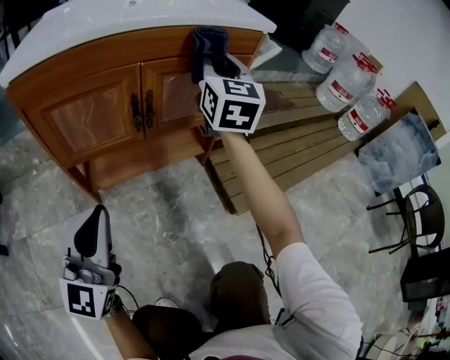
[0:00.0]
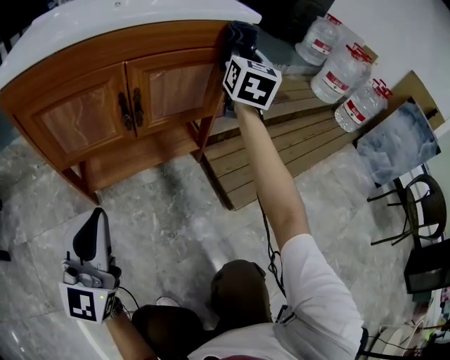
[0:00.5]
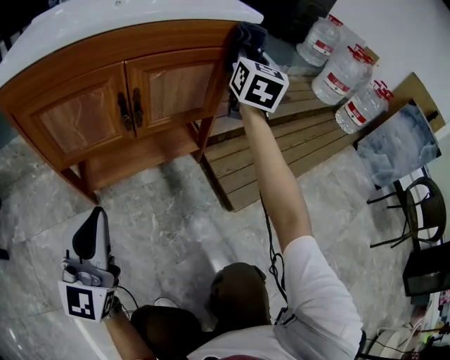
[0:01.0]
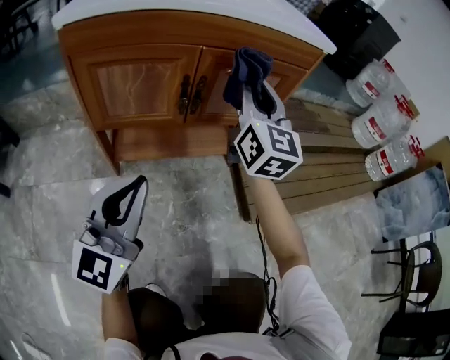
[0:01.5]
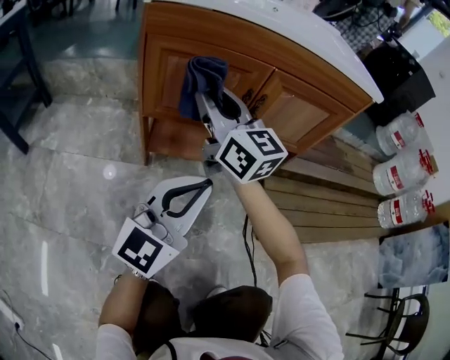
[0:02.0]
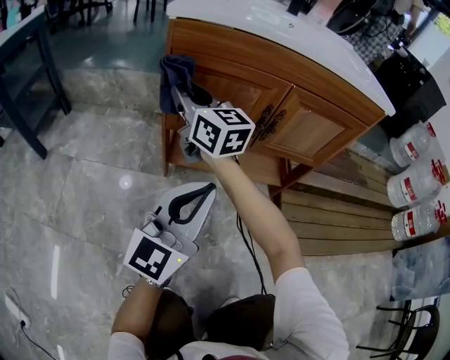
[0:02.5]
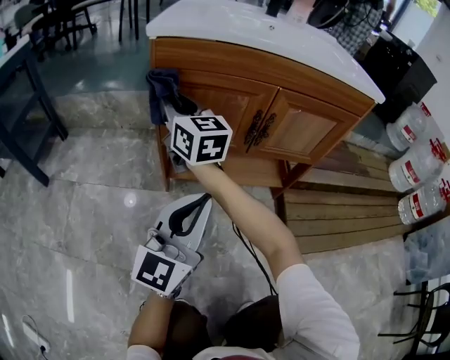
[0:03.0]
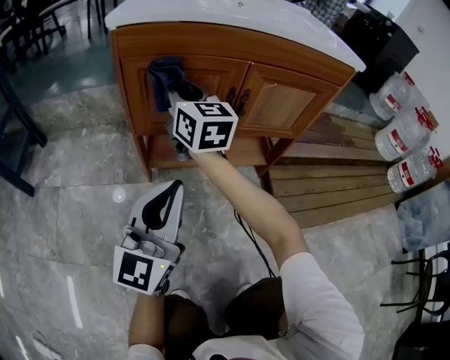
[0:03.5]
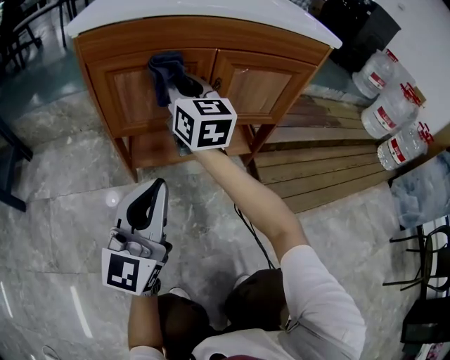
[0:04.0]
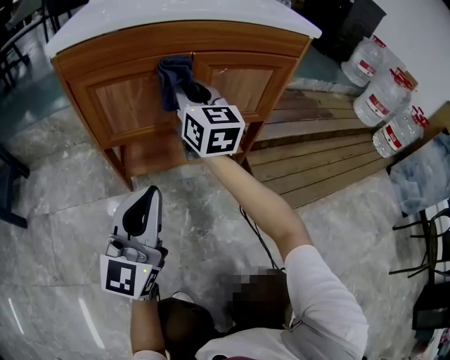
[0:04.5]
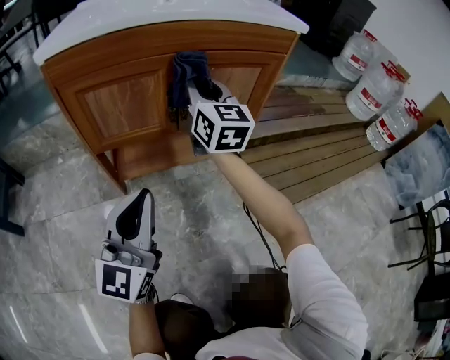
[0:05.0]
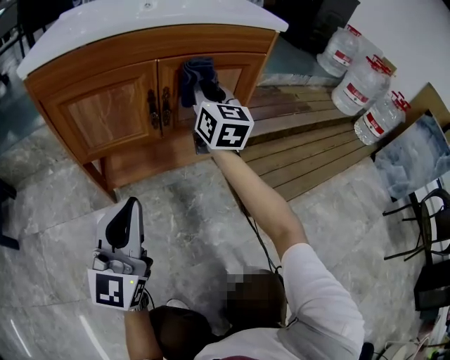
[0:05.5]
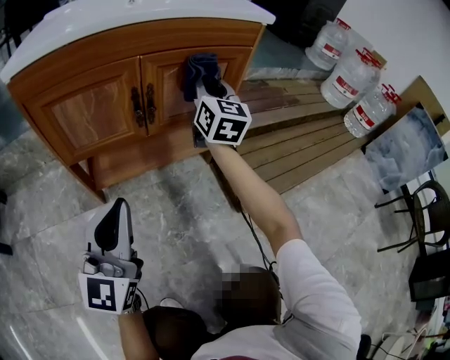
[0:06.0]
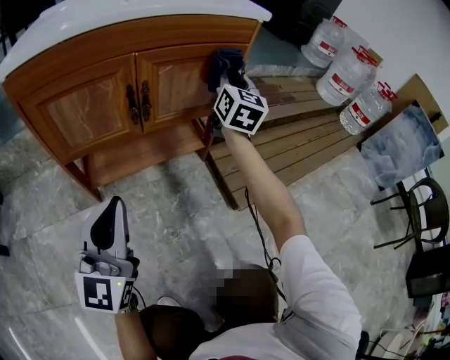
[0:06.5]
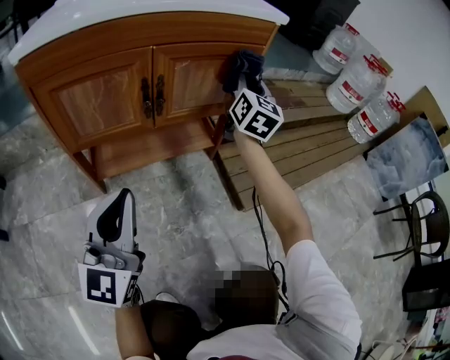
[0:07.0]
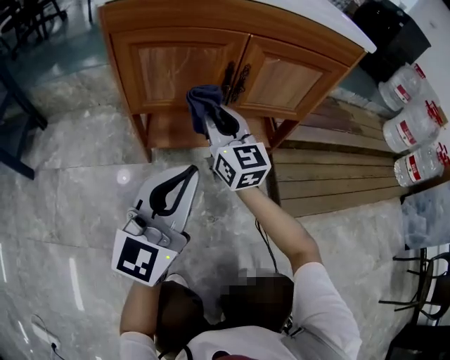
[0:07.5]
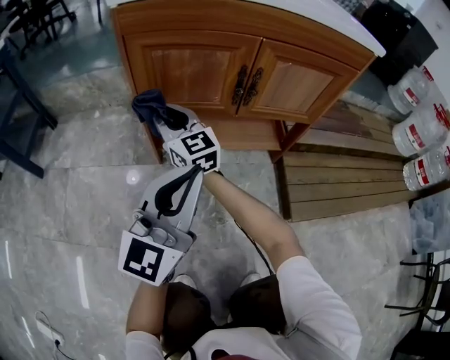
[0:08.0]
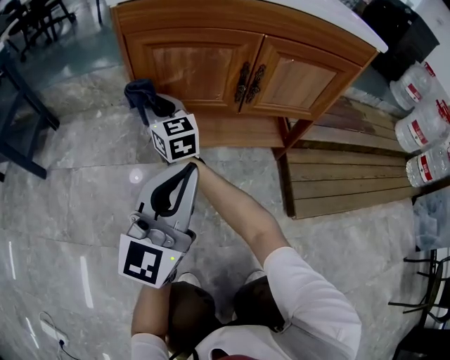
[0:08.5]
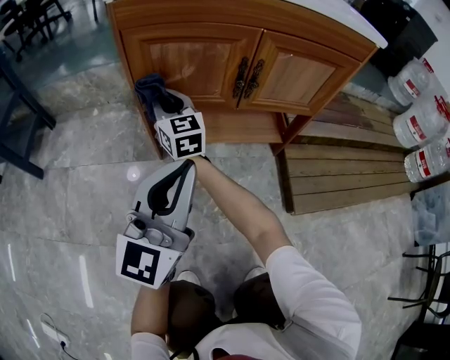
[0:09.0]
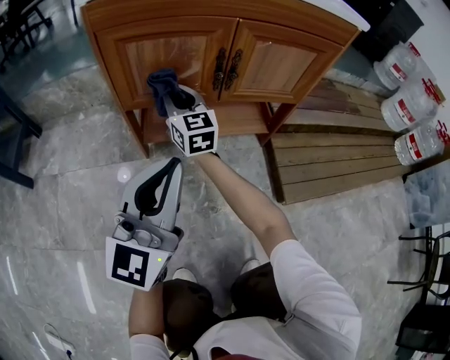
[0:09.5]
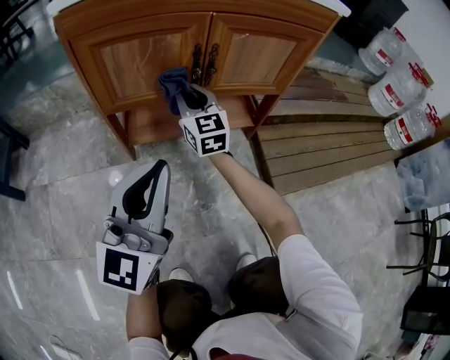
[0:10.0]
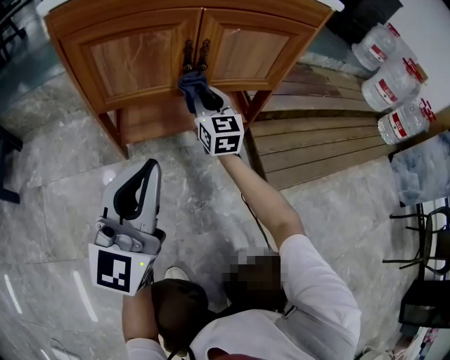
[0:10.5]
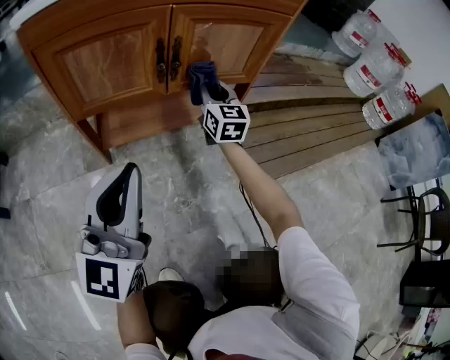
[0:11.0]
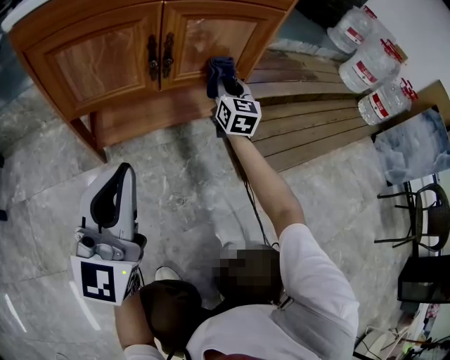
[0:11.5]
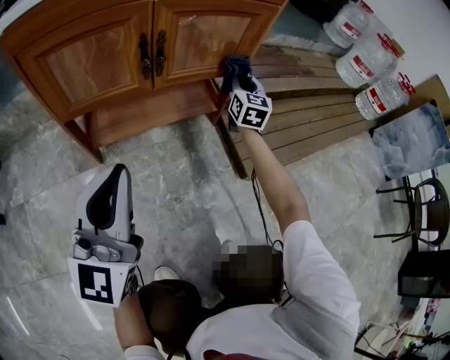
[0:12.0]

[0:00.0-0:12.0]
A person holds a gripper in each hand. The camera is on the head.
0:00.0 to 0:02.0: The right gripper shifts by approximately 30 cm, and rotates some 50 degrees; the left gripper ends up some 5 cm from where it was.
0:02.0 to 0:04.0: The right gripper is displaced forward by about 5 cm, goes to the left and returns, approximately 10 cm each way, and rotates approximately 20 degrees.
0:04.0 to 0:06.0: The right gripper is displaced to the right by roughly 25 cm, and swivels some 30 degrees.
0:06.0 to 0:08.0: The right gripper changes place by some 40 cm, and rotates approximately 50 degrees.
0:08.0 to 0:10.0: The right gripper moves to the right, some 15 cm, and changes its angle by some 20 degrees.
0:10.0 to 0:12.0: The right gripper goes approximately 30 cm to the right, and turns by some 30 degrees.

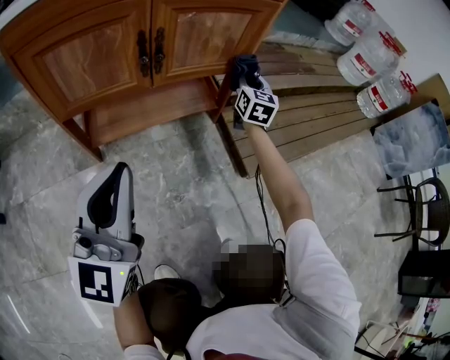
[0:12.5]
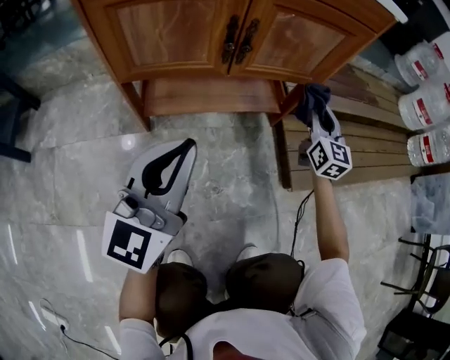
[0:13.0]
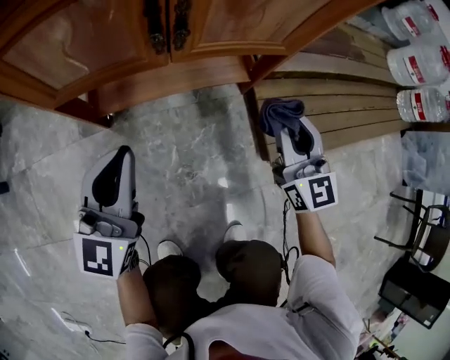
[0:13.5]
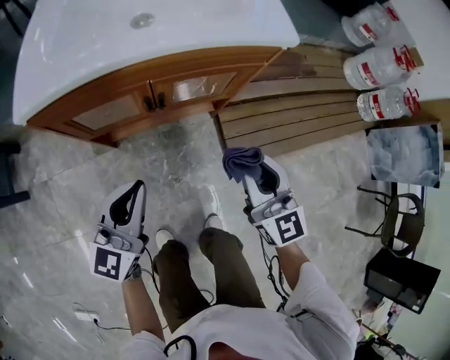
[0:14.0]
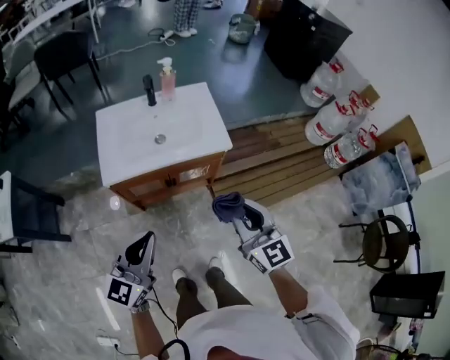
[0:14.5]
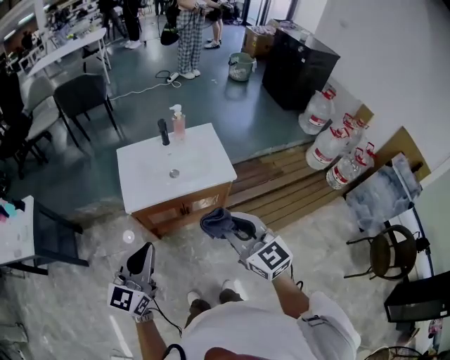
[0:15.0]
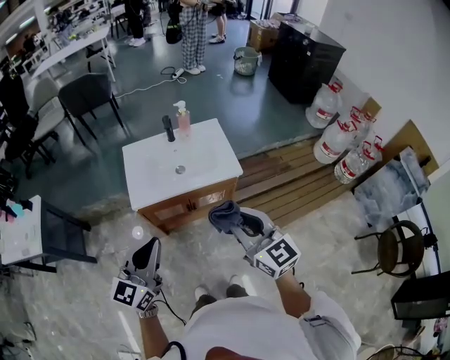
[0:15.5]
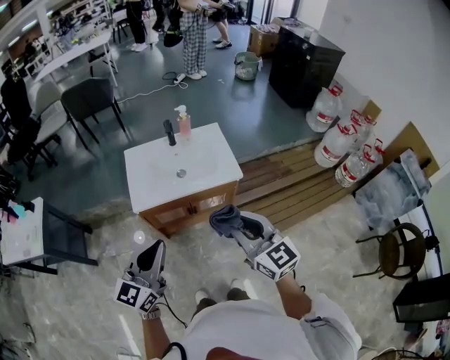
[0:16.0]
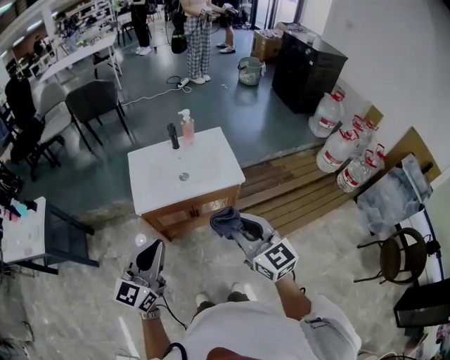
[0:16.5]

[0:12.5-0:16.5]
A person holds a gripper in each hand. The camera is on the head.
0:12.5 to 0:14.5: The left gripper goes some 50 cm upward. The right gripper moves upward and backward, roughly 80 cm, and rotates roughly 30 degrees.
0:14.5 to 0:16.5: The two grippers go approximately 10 cm upward.

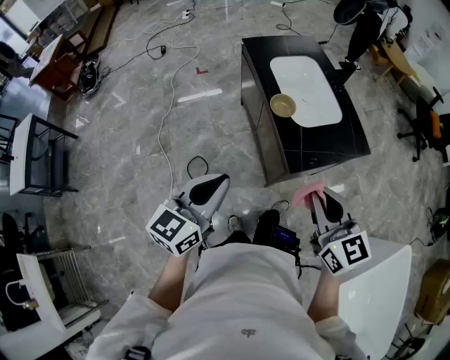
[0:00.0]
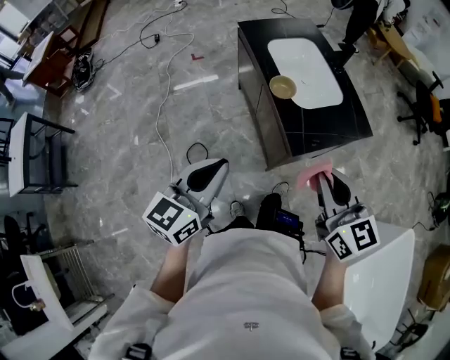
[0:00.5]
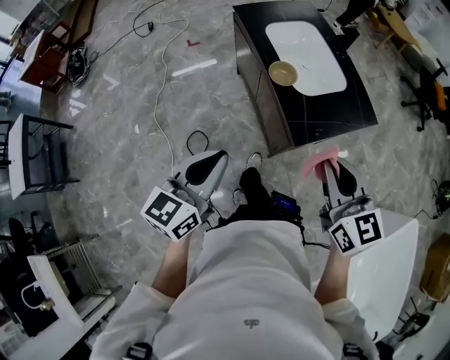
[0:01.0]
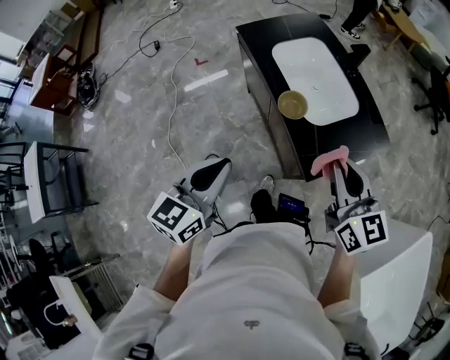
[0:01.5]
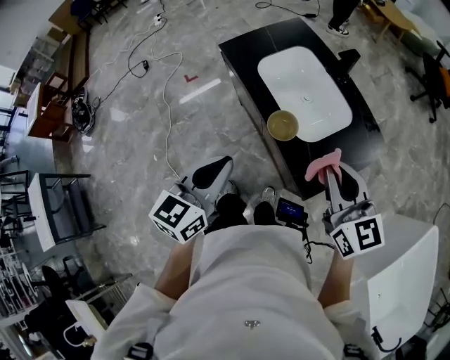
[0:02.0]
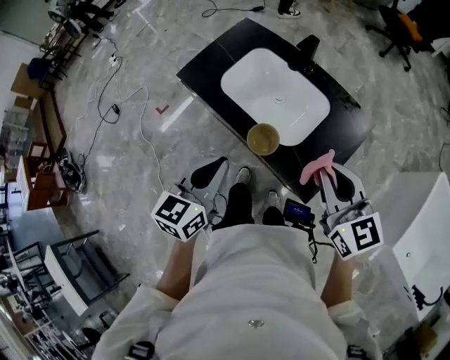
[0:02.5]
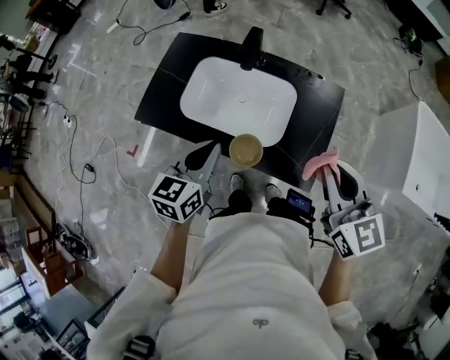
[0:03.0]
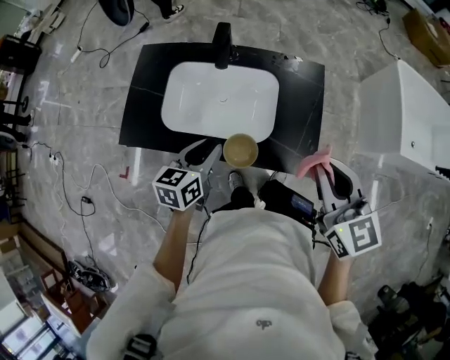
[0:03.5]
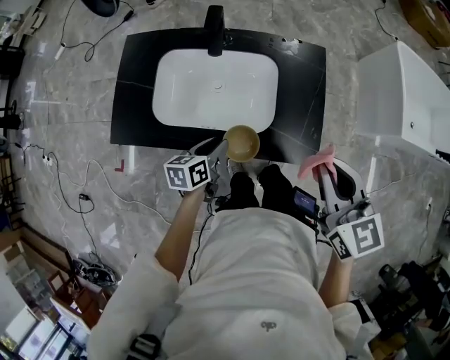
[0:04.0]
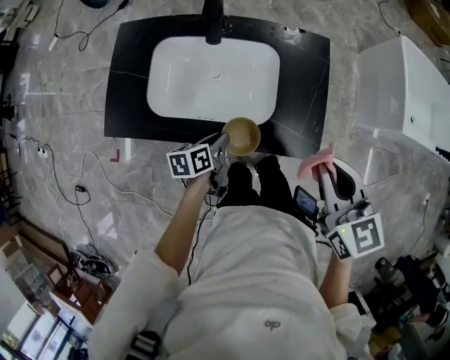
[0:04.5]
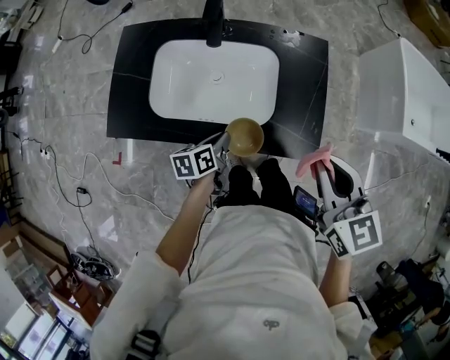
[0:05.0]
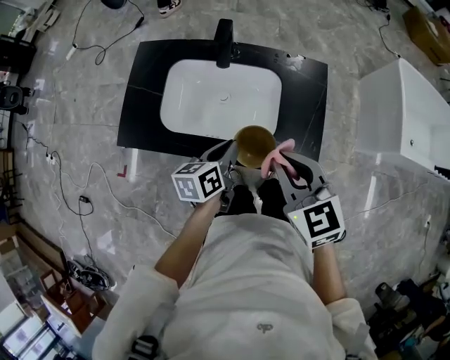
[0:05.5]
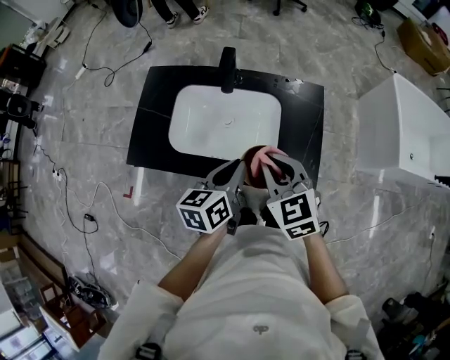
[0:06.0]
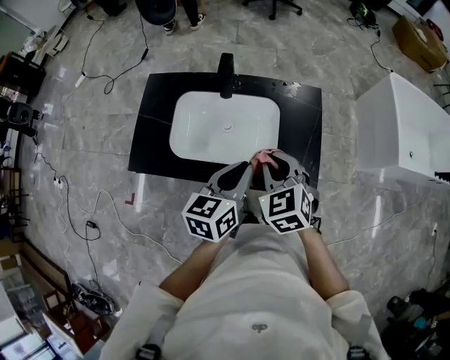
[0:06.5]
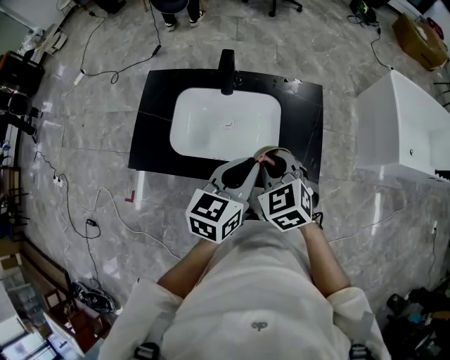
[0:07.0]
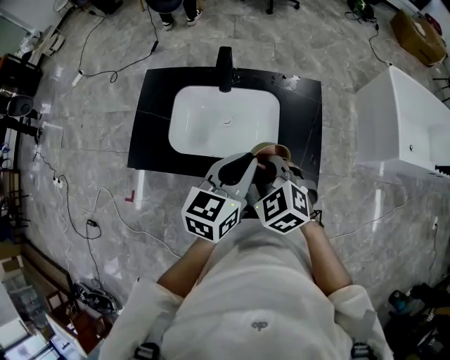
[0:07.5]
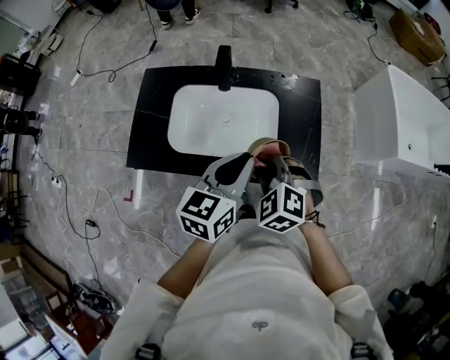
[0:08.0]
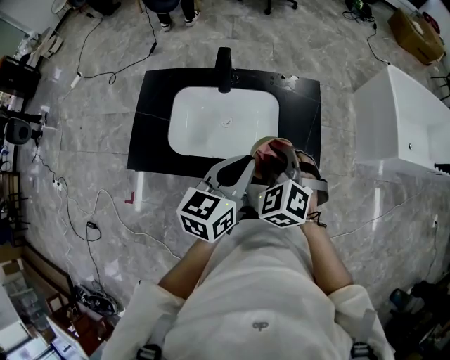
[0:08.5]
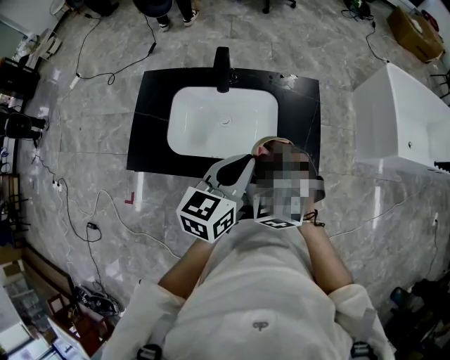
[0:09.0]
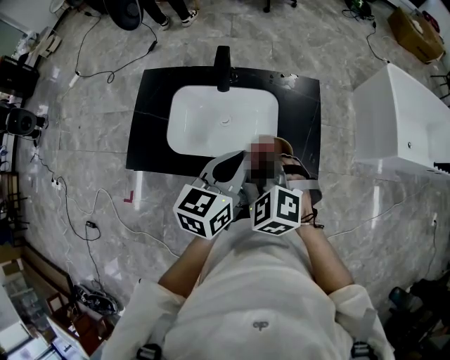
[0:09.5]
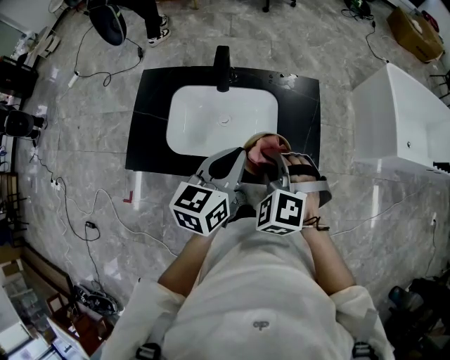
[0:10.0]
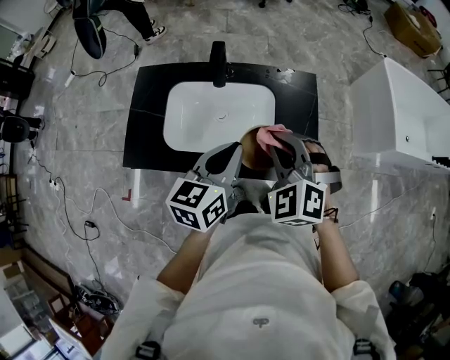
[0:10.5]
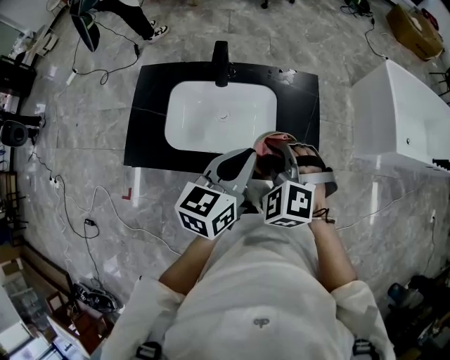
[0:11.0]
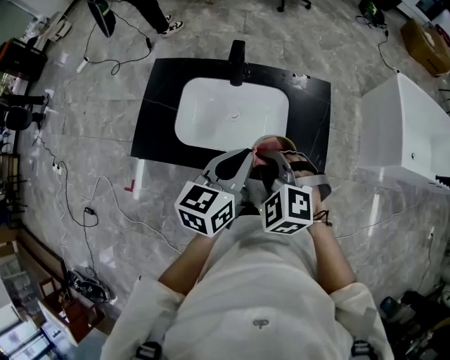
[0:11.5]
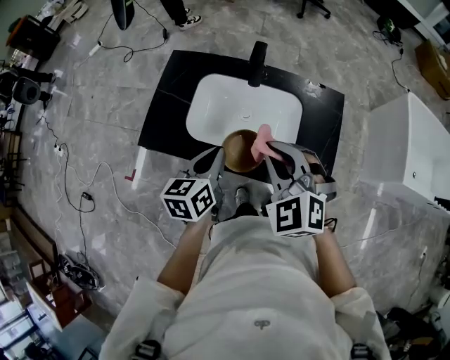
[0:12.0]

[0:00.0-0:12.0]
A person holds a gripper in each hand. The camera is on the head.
0:00.0 to 0:02.0: Both grippers travel together forward, approximately 25 cm.
0:02.0 to 0:04.0: The left gripper goes about 25 cm downward, turns by approximately 60 degrees, and opens up, while the right gripper changes place by roughly 5 cm, and rotates roughly 60 degrees.
0:04.0 to 0:06.0: The right gripper travels to the left and downward by about 15 cm; the left gripper travels upward by some 15 cm, and closes its fingers.
0:06.0 to 0:08.0: The right gripper moves roughly 5 cm, and turns by roughly 30 degrees. Meanwhile the left gripper goes some 5 cm upward, and turns by approximately 20 degrees.
0:08.0 to 0:10.0: The grippers make only small movements.
0:10.0 to 0:12.0: The right gripper travels to the left and upward by approximately 10 cm, and swivels some 20 degrees, while the left gripper shifts roughly 15 cm to the left and downward, and turns by about 20 degrees.
